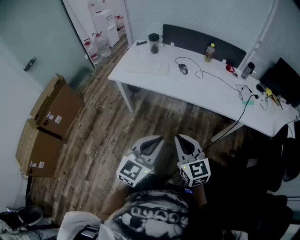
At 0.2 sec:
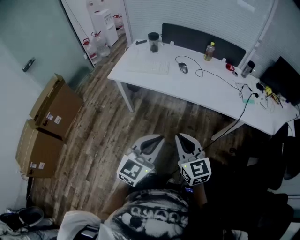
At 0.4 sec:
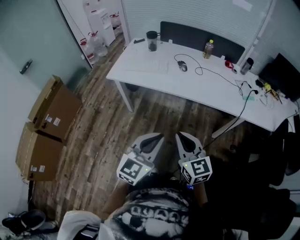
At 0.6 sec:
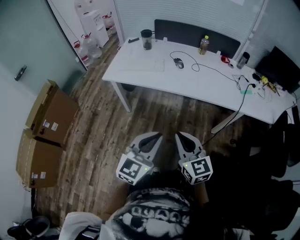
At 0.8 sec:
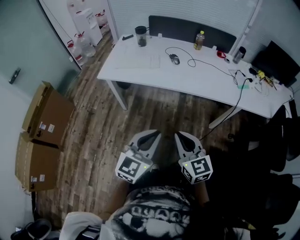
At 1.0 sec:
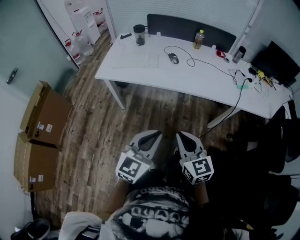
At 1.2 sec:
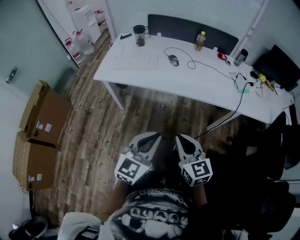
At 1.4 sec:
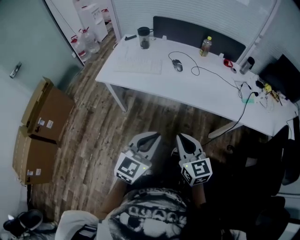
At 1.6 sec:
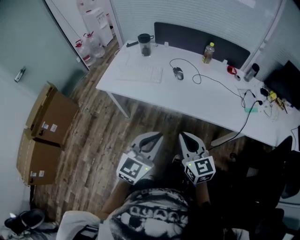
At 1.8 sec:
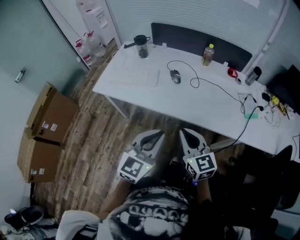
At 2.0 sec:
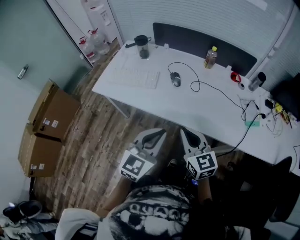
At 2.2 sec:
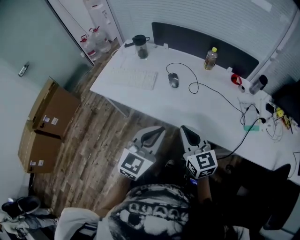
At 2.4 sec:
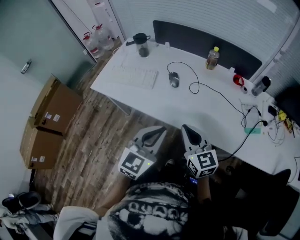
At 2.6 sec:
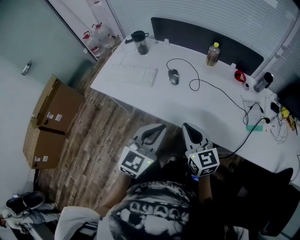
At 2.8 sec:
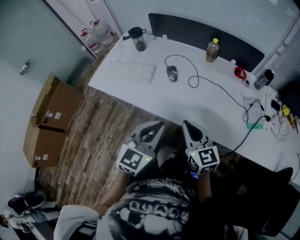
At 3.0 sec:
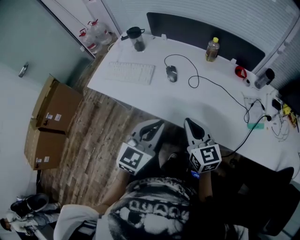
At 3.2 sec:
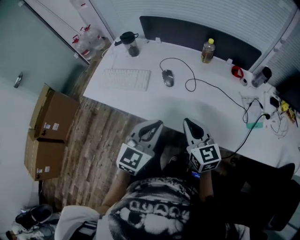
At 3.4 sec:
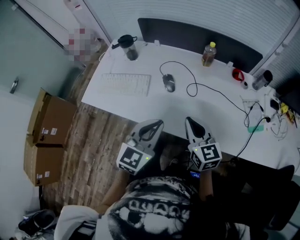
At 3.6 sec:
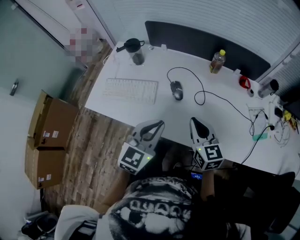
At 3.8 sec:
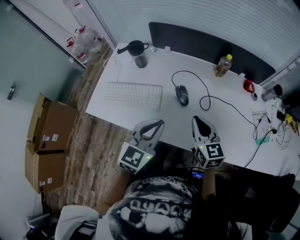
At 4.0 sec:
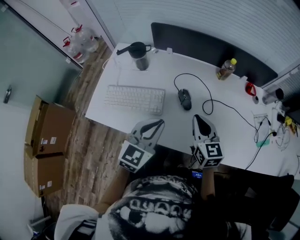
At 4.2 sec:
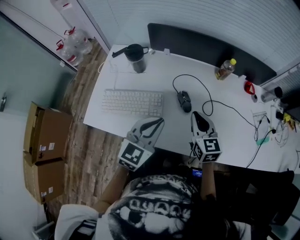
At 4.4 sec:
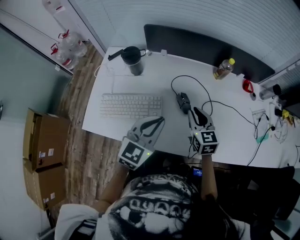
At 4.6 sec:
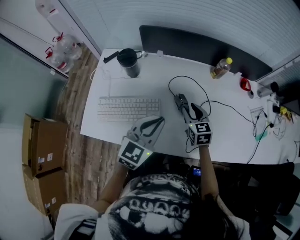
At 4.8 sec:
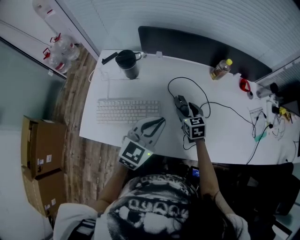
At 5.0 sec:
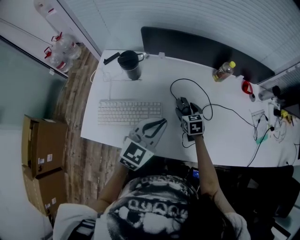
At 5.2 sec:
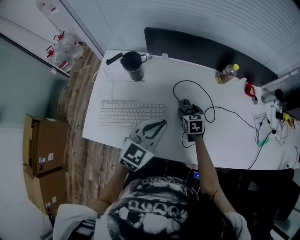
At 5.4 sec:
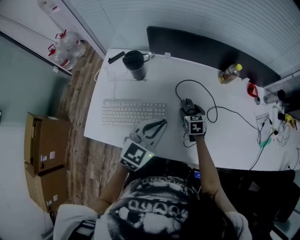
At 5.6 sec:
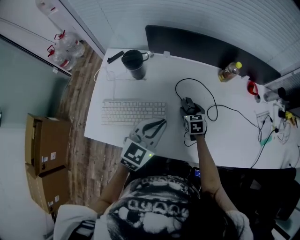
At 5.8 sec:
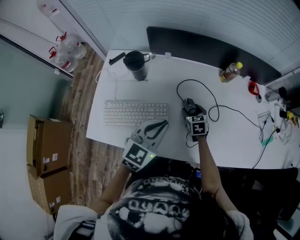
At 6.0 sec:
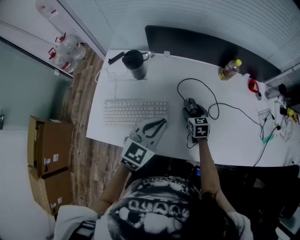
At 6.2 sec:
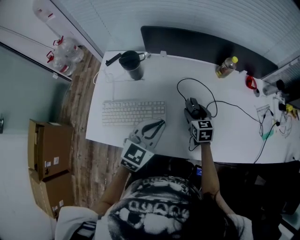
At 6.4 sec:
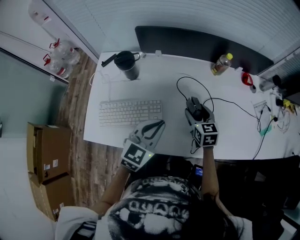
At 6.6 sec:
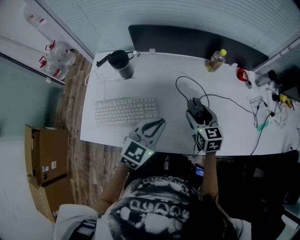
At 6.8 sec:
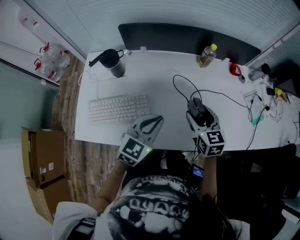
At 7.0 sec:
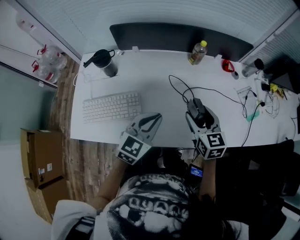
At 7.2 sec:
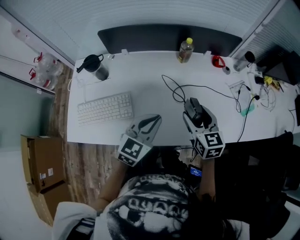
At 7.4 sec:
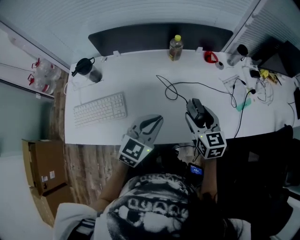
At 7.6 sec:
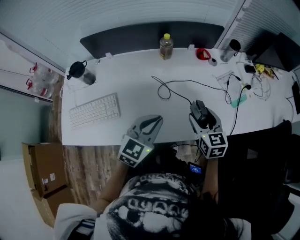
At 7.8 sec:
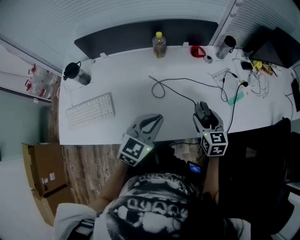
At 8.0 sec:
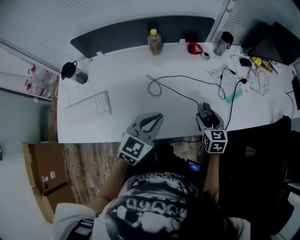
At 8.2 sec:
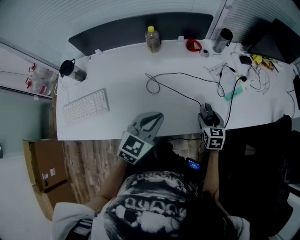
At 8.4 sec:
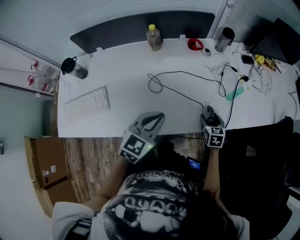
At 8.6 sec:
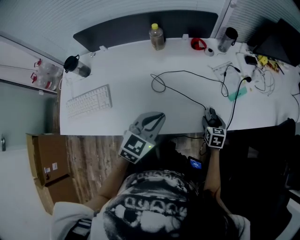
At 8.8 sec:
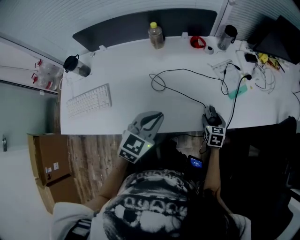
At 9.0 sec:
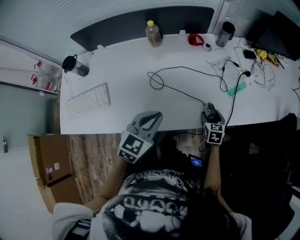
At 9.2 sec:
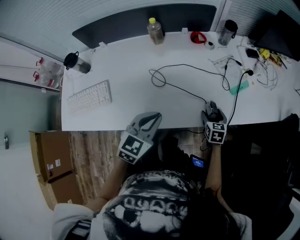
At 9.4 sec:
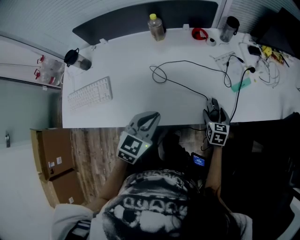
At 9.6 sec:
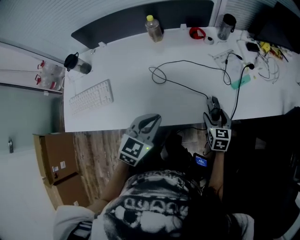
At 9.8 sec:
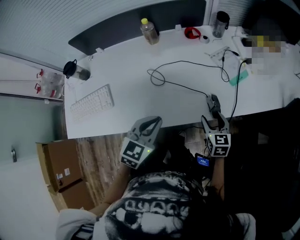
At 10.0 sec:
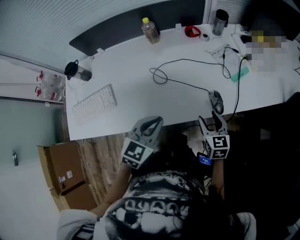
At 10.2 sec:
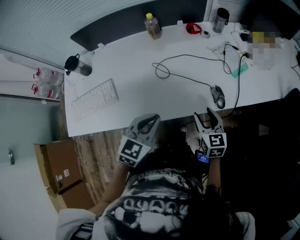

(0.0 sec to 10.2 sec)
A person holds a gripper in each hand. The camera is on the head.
0.0 sec - 1.4 sec: The two grippers go some 10 cm forward.
1.4 sec - 3.0 sec: The grippers both shift forward and to the right by roughly 30 cm.
3.0 sec - 4.4 sec: Both grippers move forward and to the left, about 30 cm. The right gripper swivels some 20 degrees.
4.4 sec - 5.8 sec: The right gripper heads downward and forward, covering about 20 cm, rotates some 20 degrees, and opens up.
5.8 sec - 7.2 sec: The right gripper shifts approximately 30 cm upward, to the right and backward, and changes its angle by about 20 degrees. The left gripper moves to the right, approximately 15 cm.
7.2 sec - 8.8 sec: The left gripper heads to the right, covering about 20 cm. Meanwhile the right gripper travels to the right and downward by approximately 35 cm, and changes its angle by approximately 30 degrees.
8.8 sec - 10.2 sec: The right gripper is displaced upward, backward and to the left by roughly 20 cm. The left gripper shifts approximately 10 cm backward.

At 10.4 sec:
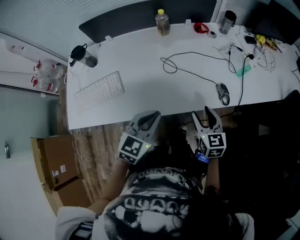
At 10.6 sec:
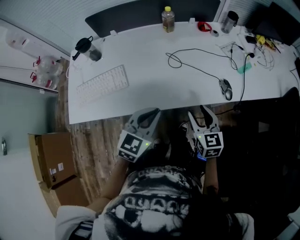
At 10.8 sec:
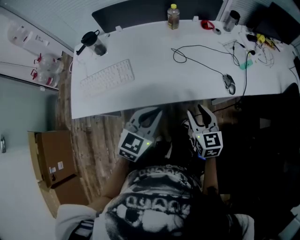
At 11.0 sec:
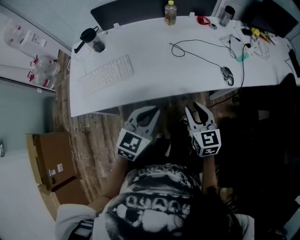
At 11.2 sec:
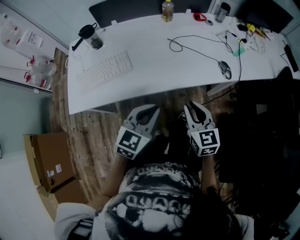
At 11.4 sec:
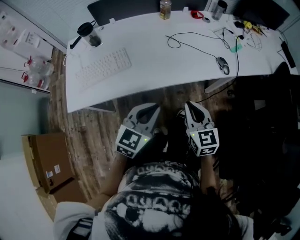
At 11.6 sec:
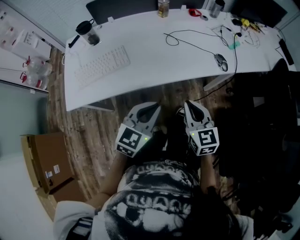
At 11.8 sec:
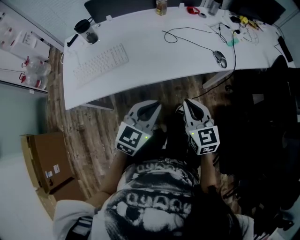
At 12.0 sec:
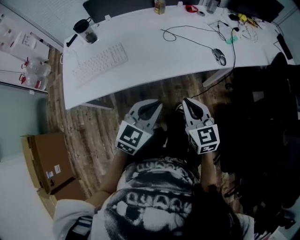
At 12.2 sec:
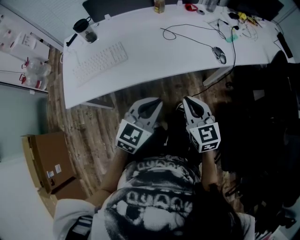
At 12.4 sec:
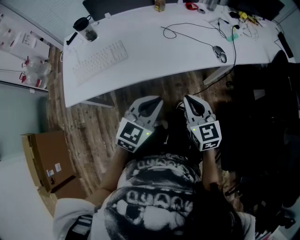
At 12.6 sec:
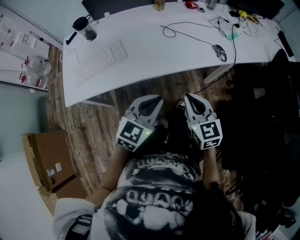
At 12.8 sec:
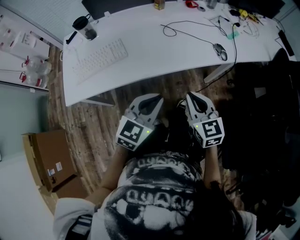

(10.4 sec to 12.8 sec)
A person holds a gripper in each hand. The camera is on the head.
10.4 sec - 11.6 sec: The right gripper moves backward and to the left, roughly 25 cm, and closes up, while the left gripper moves backward, roughly 15 cm.
11.6 sec - 12.8 sec: The grippers stay close to where they were, moving slightly.

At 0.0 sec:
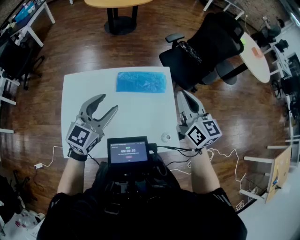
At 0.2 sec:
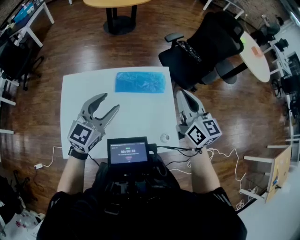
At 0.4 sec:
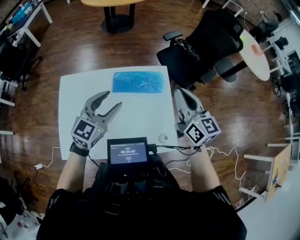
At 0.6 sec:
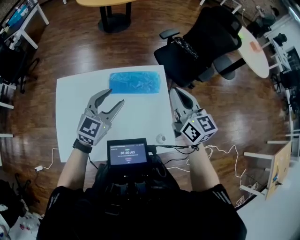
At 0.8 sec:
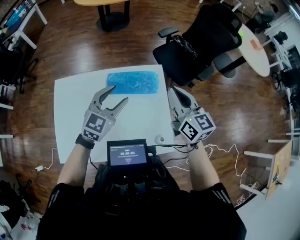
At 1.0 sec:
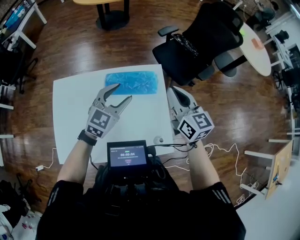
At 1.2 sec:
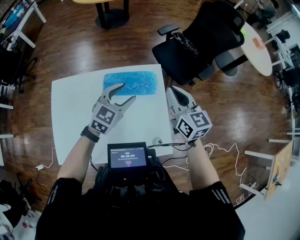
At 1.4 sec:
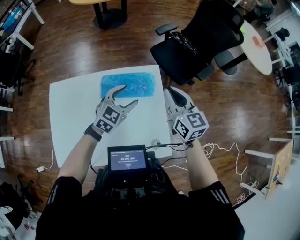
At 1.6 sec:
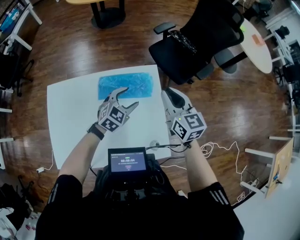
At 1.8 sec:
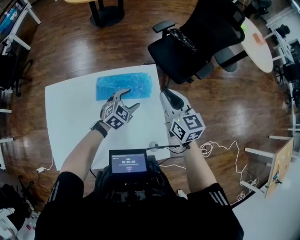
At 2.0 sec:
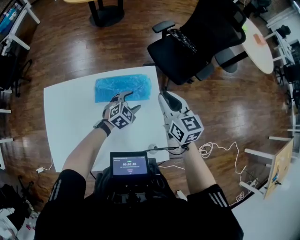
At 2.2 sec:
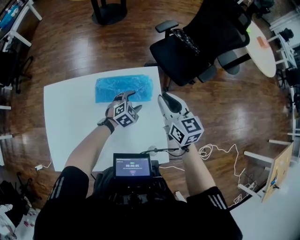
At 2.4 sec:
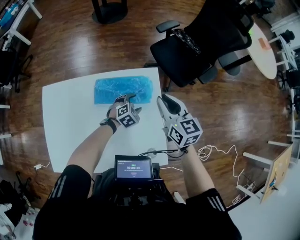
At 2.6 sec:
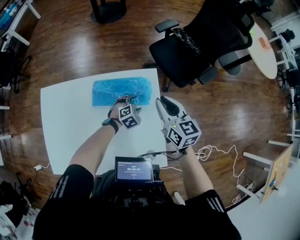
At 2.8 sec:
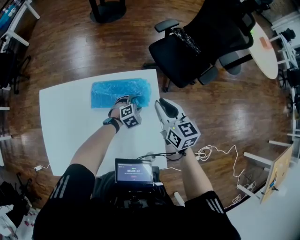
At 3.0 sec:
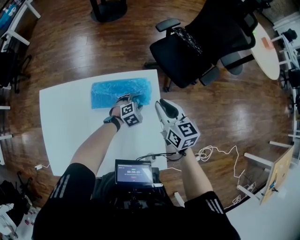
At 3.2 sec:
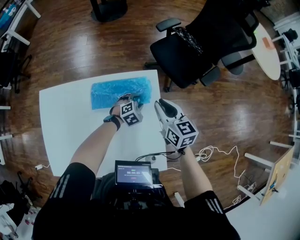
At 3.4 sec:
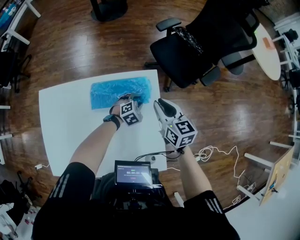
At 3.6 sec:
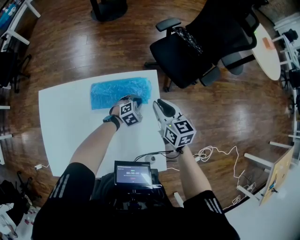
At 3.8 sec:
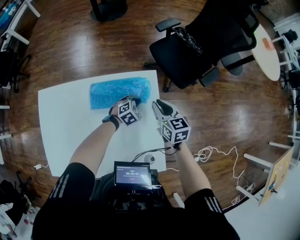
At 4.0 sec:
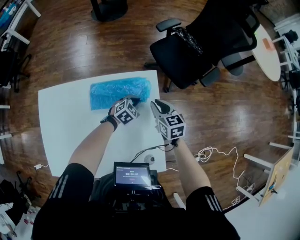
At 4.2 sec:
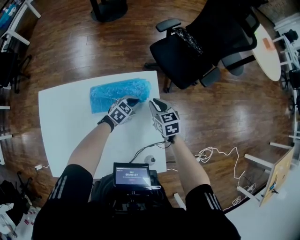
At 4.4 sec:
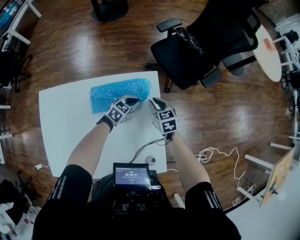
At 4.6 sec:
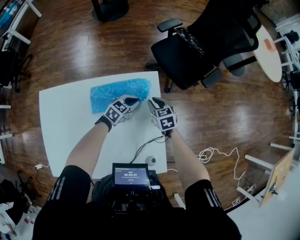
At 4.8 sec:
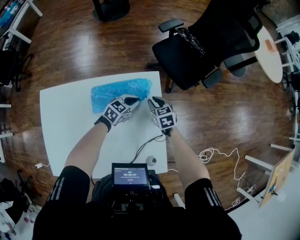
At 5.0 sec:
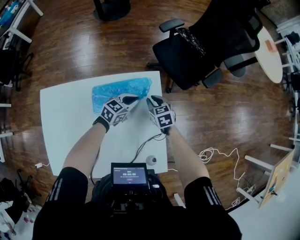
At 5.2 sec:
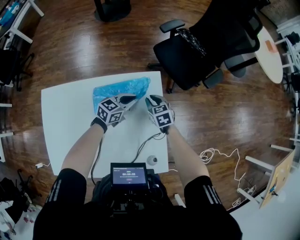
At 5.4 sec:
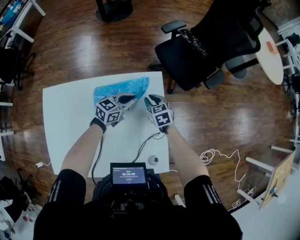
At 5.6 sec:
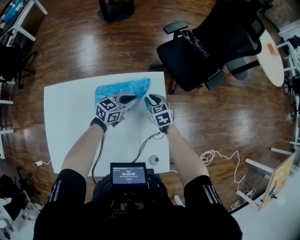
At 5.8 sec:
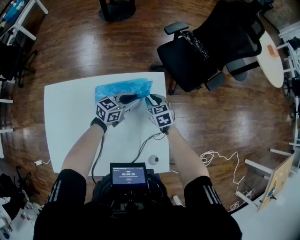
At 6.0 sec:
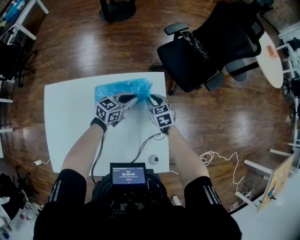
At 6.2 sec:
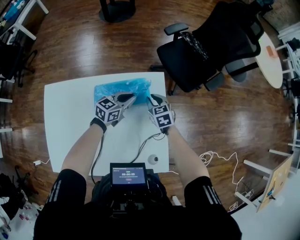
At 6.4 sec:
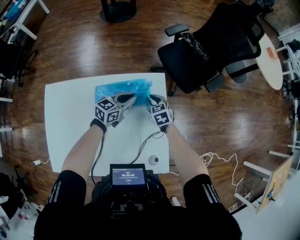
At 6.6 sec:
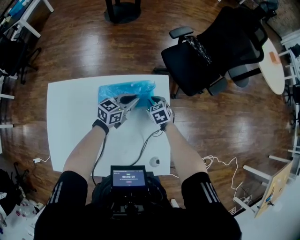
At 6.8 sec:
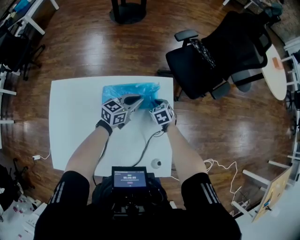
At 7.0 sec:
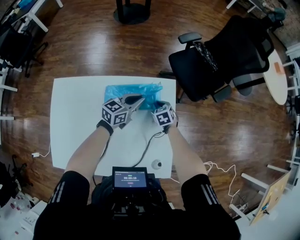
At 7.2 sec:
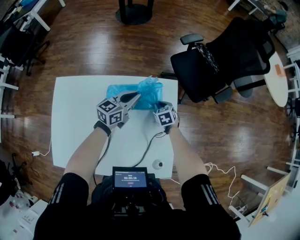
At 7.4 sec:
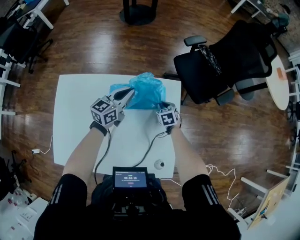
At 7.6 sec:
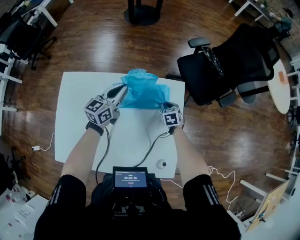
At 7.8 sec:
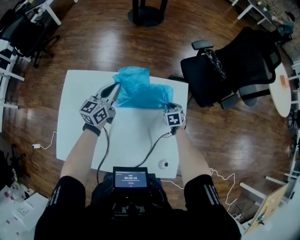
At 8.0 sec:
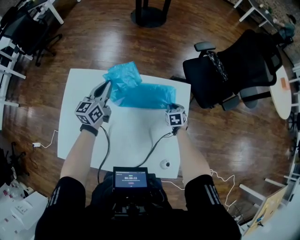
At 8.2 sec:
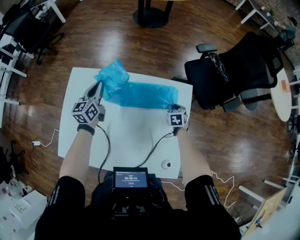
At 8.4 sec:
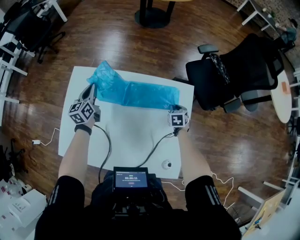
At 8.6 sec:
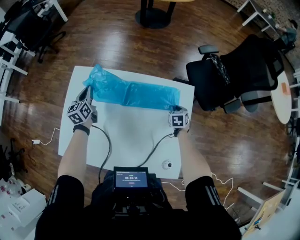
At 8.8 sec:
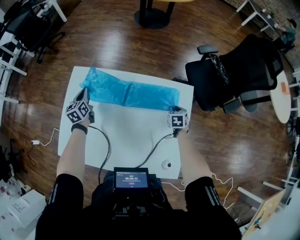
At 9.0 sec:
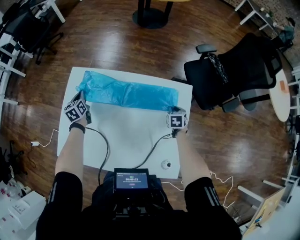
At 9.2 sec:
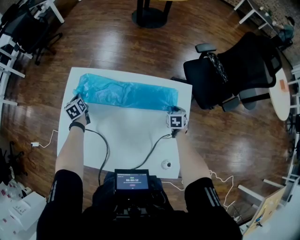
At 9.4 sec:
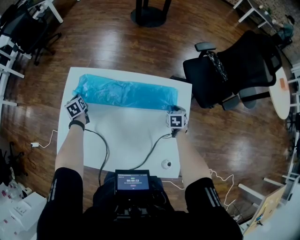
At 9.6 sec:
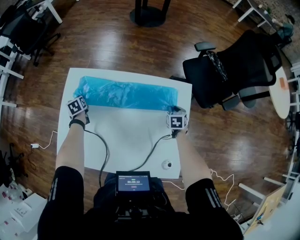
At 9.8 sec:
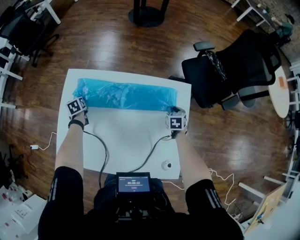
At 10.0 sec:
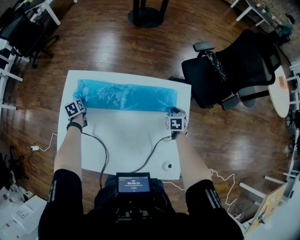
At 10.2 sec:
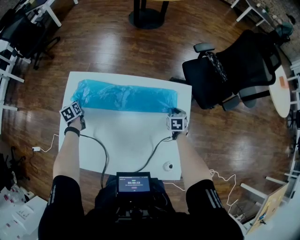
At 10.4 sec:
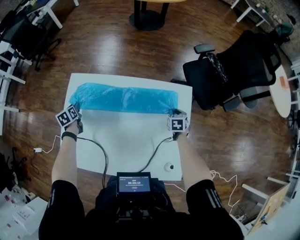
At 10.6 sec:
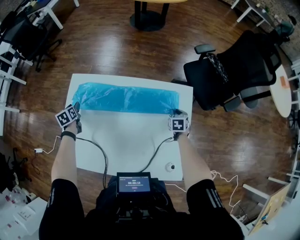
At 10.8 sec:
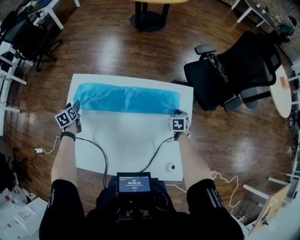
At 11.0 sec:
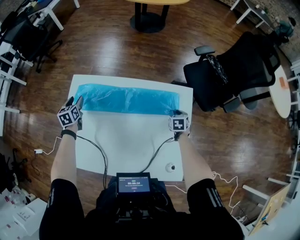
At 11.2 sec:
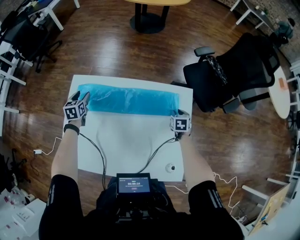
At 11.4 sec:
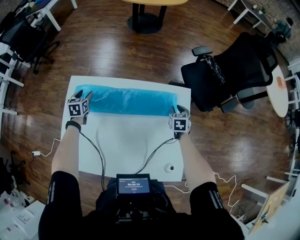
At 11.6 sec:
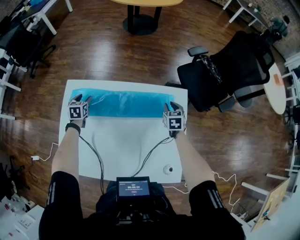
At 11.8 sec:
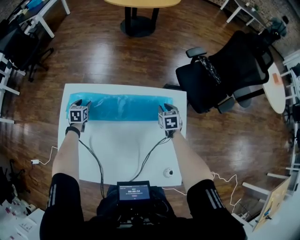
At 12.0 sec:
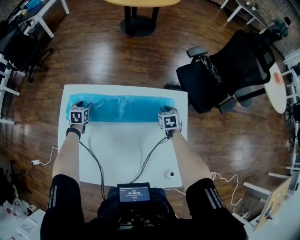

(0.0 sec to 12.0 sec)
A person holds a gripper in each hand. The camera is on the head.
0.0 sec - 1.6 sec: The right gripper shifts approximately 15 cm forward and downward, while the left gripper heads downward, to the right and forward, covering about 30 cm, and changes its angle by approximately 30 degrees.
1.6 sec - 3.0 sec: The left gripper is displaced downward by some 20 cm, and rotates some 30 degrees; the right gripper shifts about 10 cm downward.
3.0 sec - 4.4 sec: The left gripper moves some 5 cm, rotates some 30 degrees, and closes. The right gripper heads downward, covering approximately 15 cm, and changes its angle by some 20 degrees.
4.4 sec - 6.0 sec: The left gripper is displaced upward and to the left by approximately 10 cm, and changes its angle by about 20 degrees.
6.0 sec - 7.6 sec: The right gripper travels downward by some 5 cm. Meanwhile the left gripper goes some 20 cm to the left and upward, and swivels about 30 degrees.
7.6 sec - 9.0 sec: The left gripper is displaced to the left by roughly 30 cm, and turns by approximately 50 degrees.
9.0 sec - 10.4 sec: The left gripper heads to the left, covering approximately 5 cm, and opens.
10.4 sec - 12.0 sec: The left gripper moves to the right and forward, approximately 10 cm, changes its angle by about 30 degrees, and opens up, while the right gripper travels forward and to the left by approximately 10 cm.
